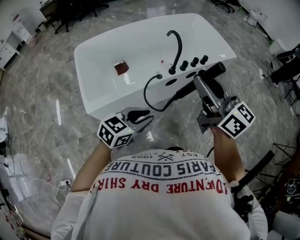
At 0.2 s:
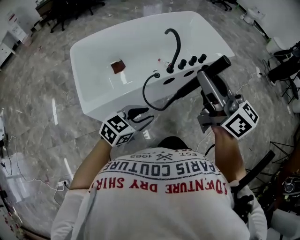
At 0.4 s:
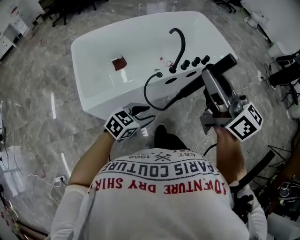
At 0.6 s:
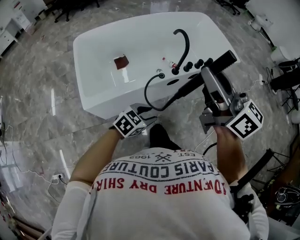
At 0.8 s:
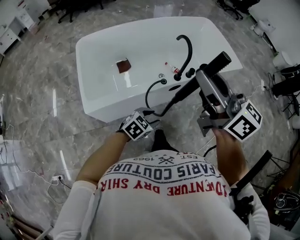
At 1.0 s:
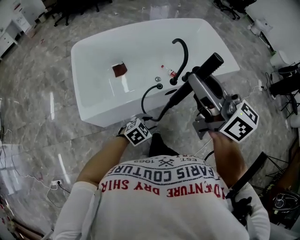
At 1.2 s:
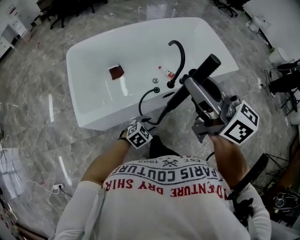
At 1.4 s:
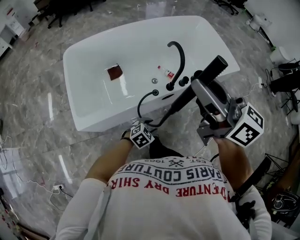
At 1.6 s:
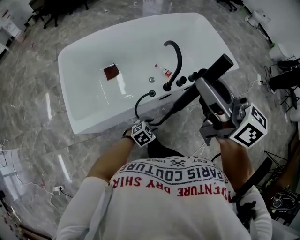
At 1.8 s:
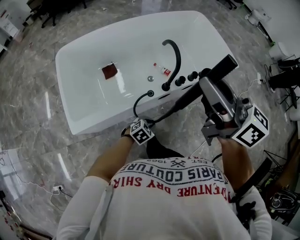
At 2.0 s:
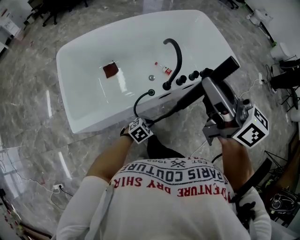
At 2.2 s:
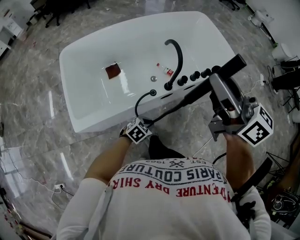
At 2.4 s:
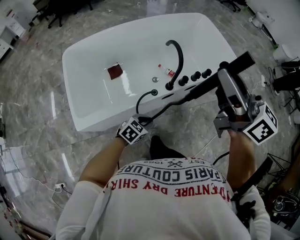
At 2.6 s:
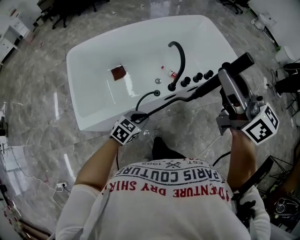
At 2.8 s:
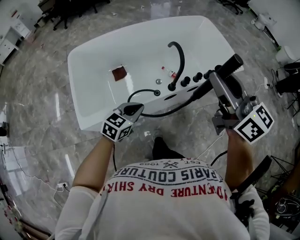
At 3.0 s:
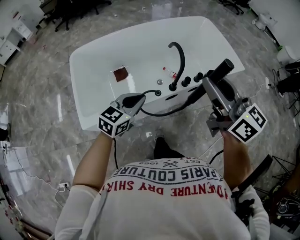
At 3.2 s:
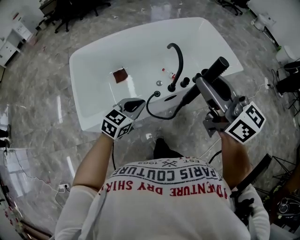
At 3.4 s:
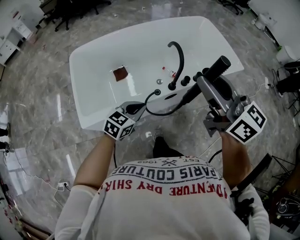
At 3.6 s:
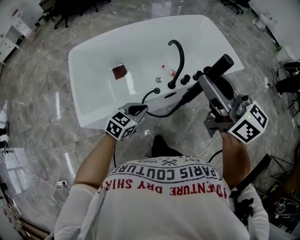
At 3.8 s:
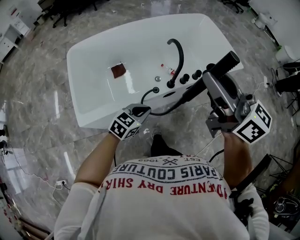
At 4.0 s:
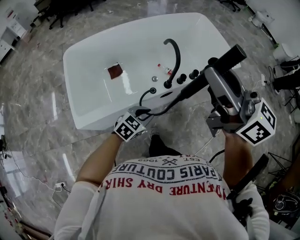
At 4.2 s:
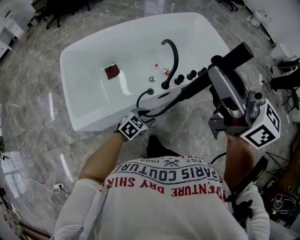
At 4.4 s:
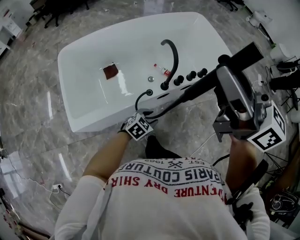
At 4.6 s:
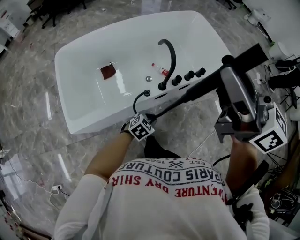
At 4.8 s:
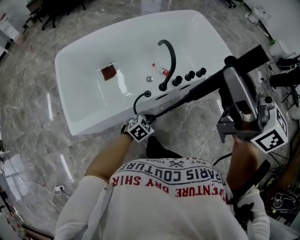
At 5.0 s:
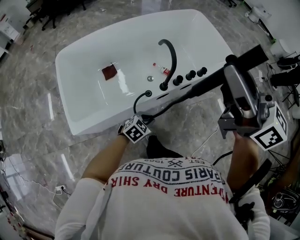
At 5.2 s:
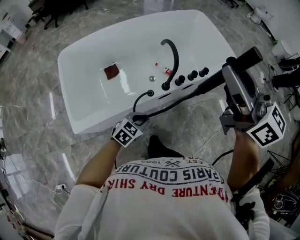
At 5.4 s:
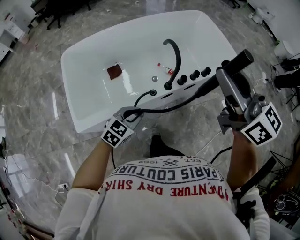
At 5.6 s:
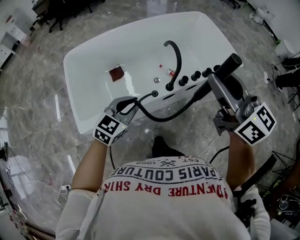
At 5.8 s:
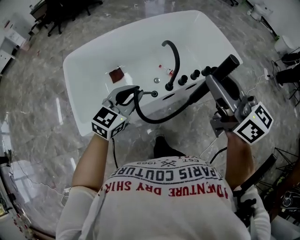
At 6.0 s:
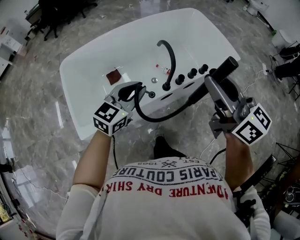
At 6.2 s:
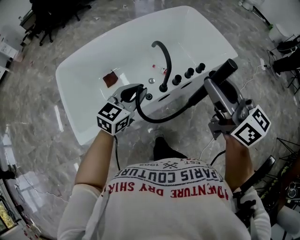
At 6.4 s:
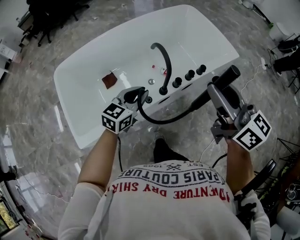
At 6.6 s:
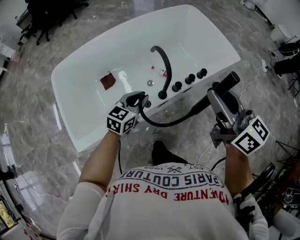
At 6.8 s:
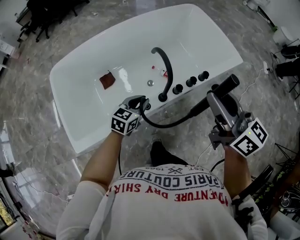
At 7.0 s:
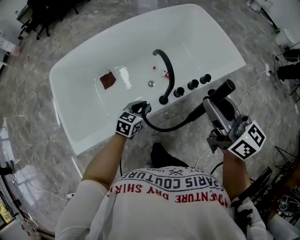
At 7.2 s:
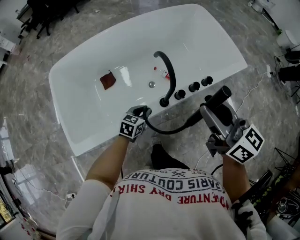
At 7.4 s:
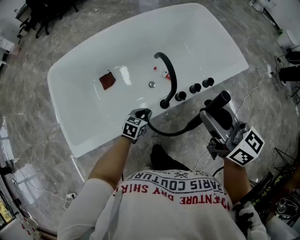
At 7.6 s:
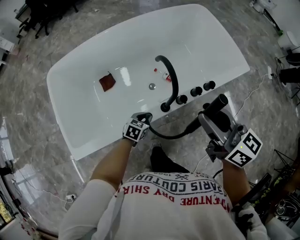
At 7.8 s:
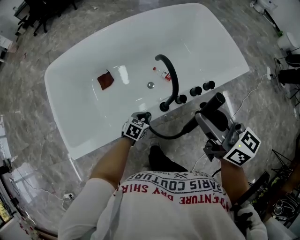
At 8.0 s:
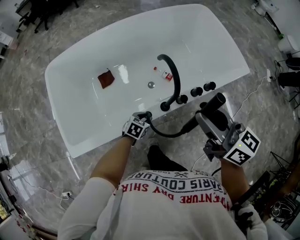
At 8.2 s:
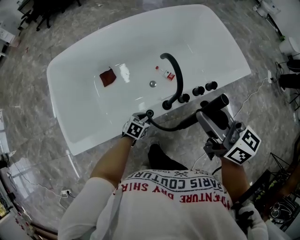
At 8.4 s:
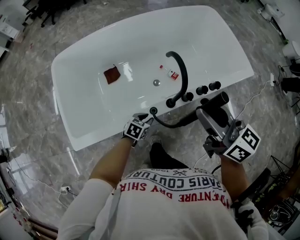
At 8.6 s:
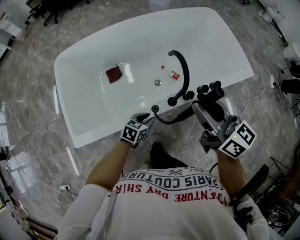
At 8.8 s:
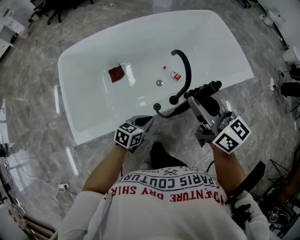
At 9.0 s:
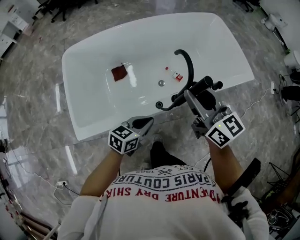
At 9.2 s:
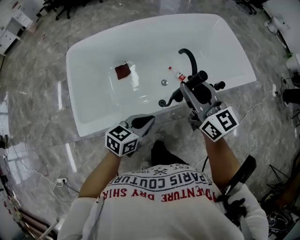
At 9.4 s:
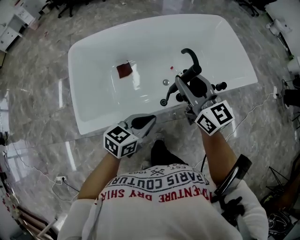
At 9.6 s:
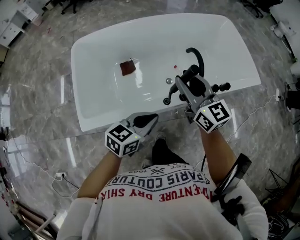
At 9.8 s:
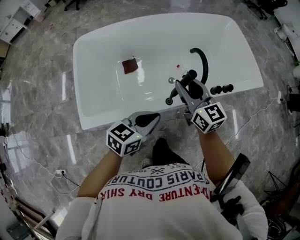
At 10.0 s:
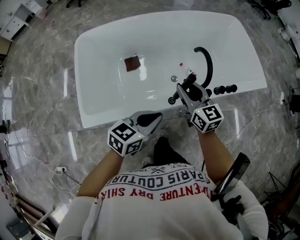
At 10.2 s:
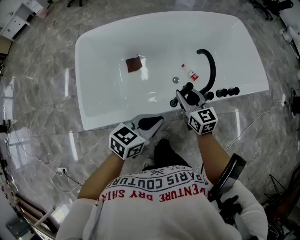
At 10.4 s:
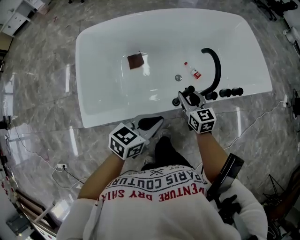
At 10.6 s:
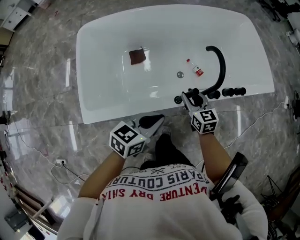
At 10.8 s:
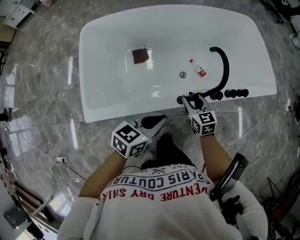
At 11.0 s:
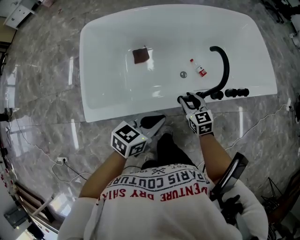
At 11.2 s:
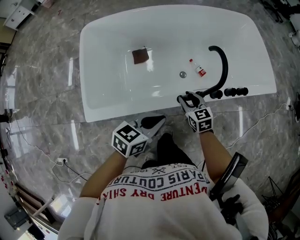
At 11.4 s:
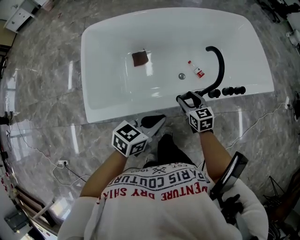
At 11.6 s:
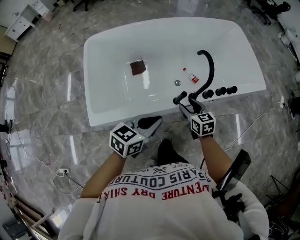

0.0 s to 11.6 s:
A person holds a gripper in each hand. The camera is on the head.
0.0 to 1.4 s: The left gripper is displaced downward and forward by roughly 25 cm, changes its angle by approximately 30 degrees, and opens up, while the right gripper moves forward and to the left, about 15 cm.
1.4 to 2.8 s: The right gripper is displaced to the right by some 5 cm. The left gripper goes some 20 cm upward and to the left, turns by about 30 degrees, and closes its fingers.
2.8 to 4.4 s: The right gripper shifts roughly 10 cm upward. Meanwhile the left gripper travels downward and to the right by about 20 cm, rotates roughly 20 degrees, and opens up.
4.4 to 5.8 s: The right gripper is displaced downward by some 10 cm. Meanwhile the left gripper moves upward and to the left, roughly 25 cm, rotates about 30 degrees, and closes up.
5.8 to 7.2 s: The left gripper goes some 30 cm downward, and rotates approximately 30 degrees. Meanwhile the right gripper travels downward and forward by roughly 15 cm.
7.2 to 8.8 s: The left gripper shifts roughly 10 cm backward and upward, while the right gripper is displaced to the left by about 5 cm.
8.8 to 10.2 s: The right gripper heads downward and to the left, covering roughly 20 cm, while the left gripper goes approximately 10 cm upward.
10.2 to 11.6 s: The right gripper goes approximately 5 cm backward, and opens its fingers.

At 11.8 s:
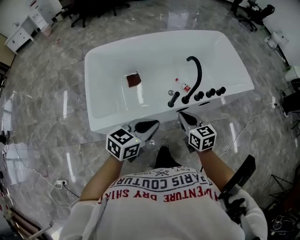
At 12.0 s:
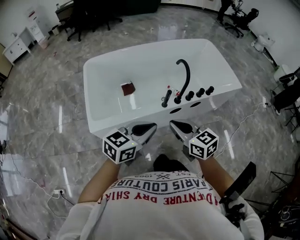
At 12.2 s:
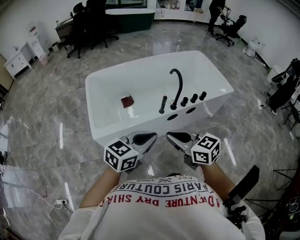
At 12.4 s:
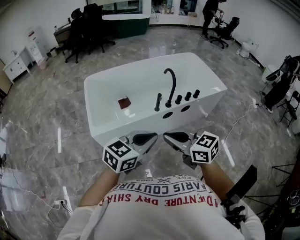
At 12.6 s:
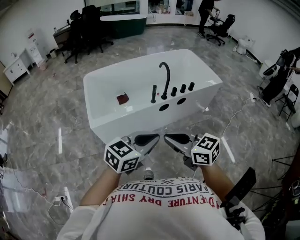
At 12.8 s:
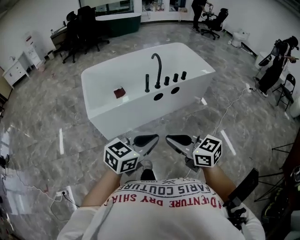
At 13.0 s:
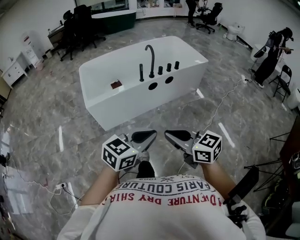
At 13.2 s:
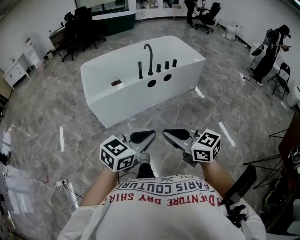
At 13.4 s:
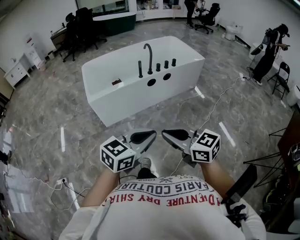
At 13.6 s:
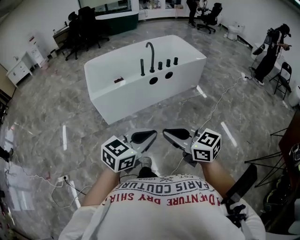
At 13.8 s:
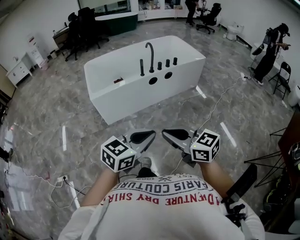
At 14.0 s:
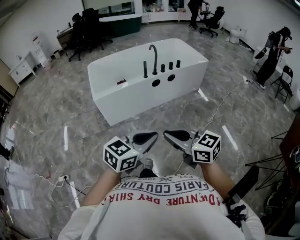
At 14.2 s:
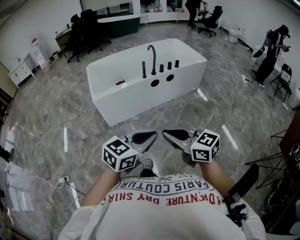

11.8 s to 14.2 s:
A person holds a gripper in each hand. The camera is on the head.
11.8 to 13.0 s: Both grippers are carried backward, approximately 50 cm.
13.0 to 14.2 s: Both grippers travel together backward, approximately 10 cm.

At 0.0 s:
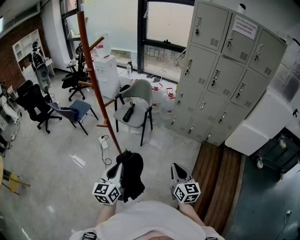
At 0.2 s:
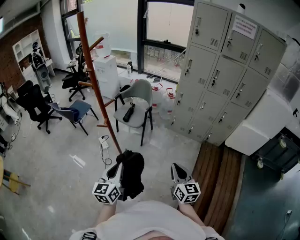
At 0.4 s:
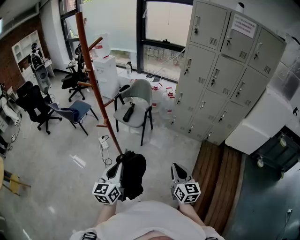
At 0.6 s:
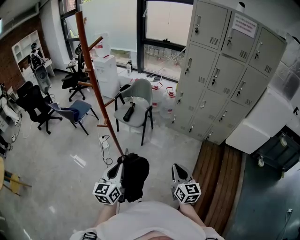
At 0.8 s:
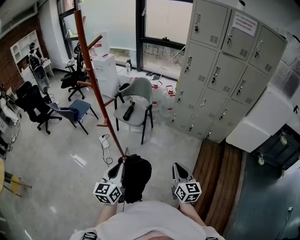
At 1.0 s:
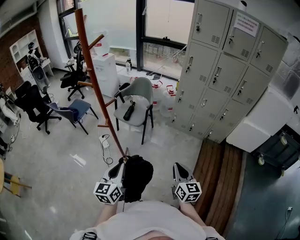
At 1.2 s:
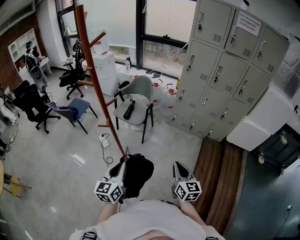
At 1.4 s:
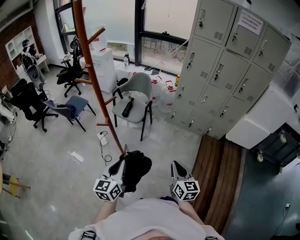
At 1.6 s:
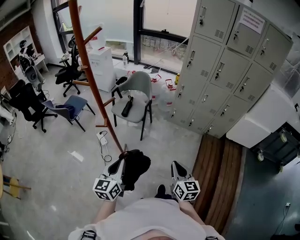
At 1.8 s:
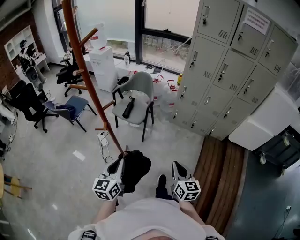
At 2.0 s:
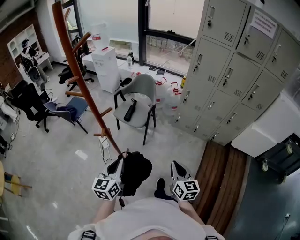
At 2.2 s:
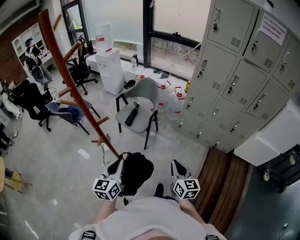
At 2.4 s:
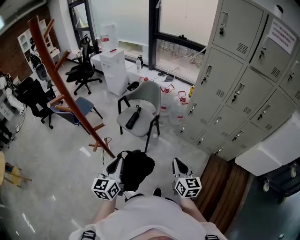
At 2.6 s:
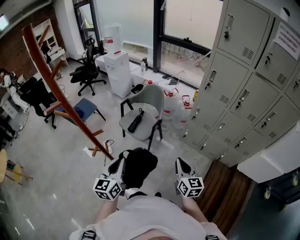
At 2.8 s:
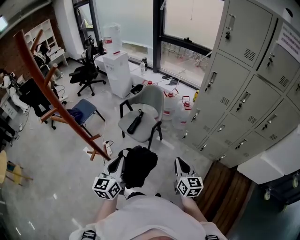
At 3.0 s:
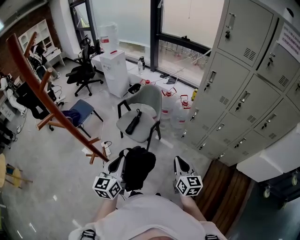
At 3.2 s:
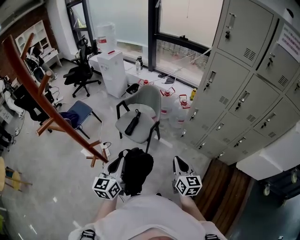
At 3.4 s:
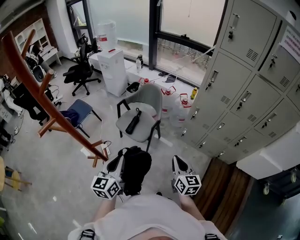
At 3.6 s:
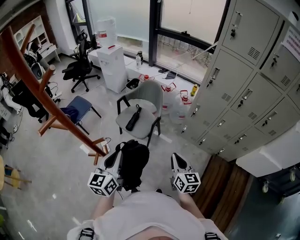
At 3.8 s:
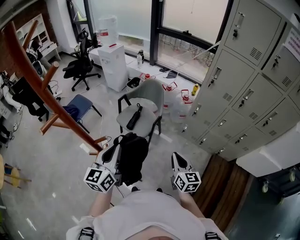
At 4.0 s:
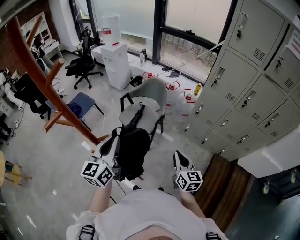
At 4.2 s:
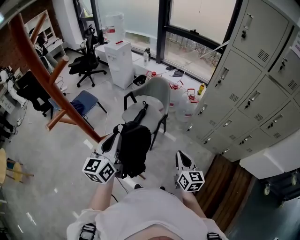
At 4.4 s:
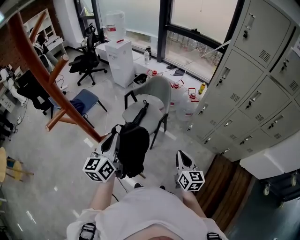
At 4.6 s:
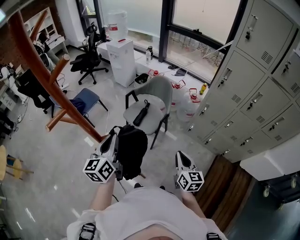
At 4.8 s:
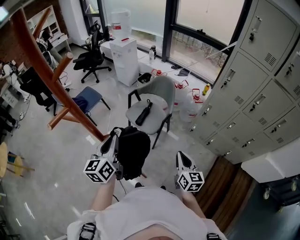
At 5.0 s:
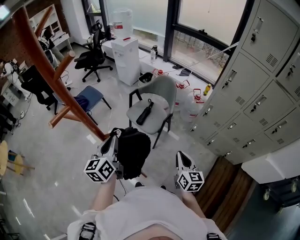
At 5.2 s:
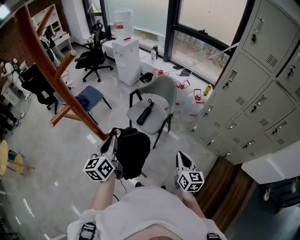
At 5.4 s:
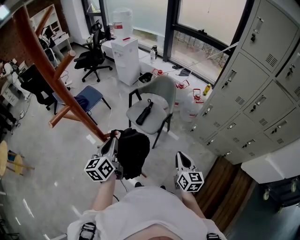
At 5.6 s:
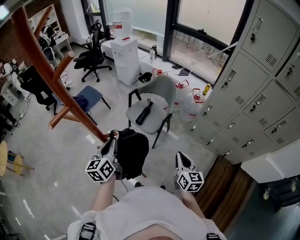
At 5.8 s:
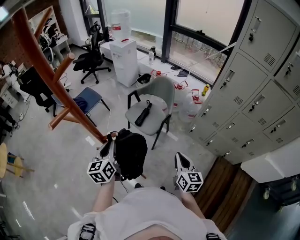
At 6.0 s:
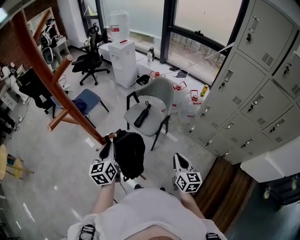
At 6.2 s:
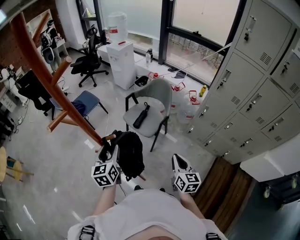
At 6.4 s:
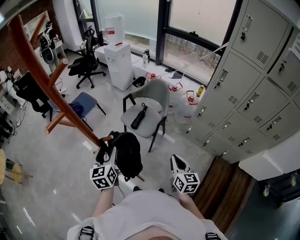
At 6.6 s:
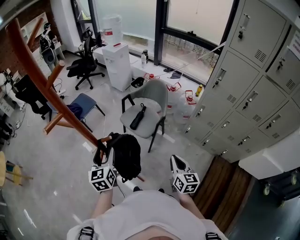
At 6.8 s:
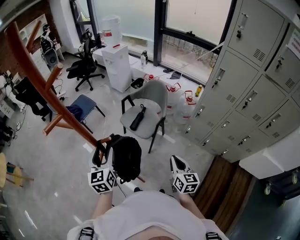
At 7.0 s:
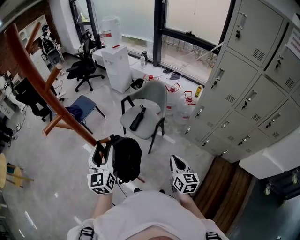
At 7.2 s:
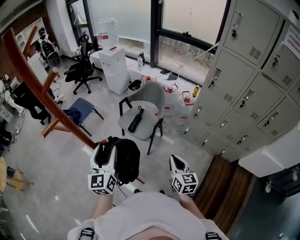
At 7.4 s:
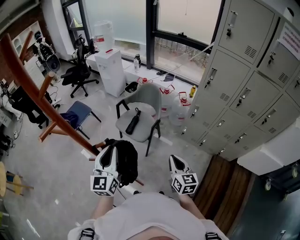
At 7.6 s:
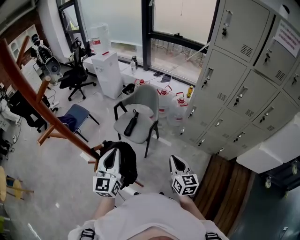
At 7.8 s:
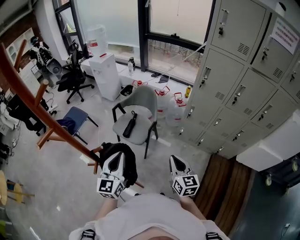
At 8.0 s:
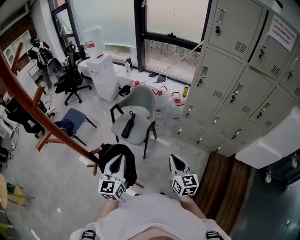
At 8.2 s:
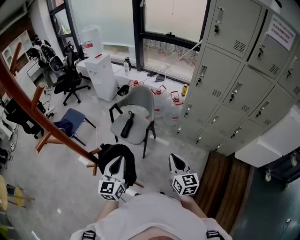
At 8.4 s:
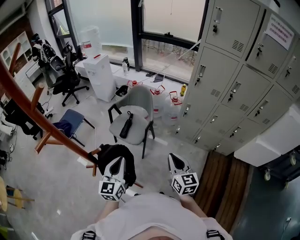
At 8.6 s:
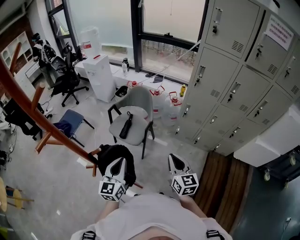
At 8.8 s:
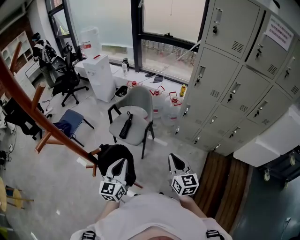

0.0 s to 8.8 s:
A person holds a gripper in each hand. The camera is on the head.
0.0 to 1.4 s: The left gripper changes place by approximately 5 cm, while the right gripper ends up some 5 cm from where it was.
1.4 to 3.0 s: The grippers both shift forward by about 30 cm.
3.0 to 4.4 s: The right gripper goes some 5 cm to the left, while the left gripper travels to the left, forward and upward by approximately 15 cm.
4.4 to 5.8 s: The left gripper is displaced downward and to the left by approximately 10 cm.
5.8 to 7.4 s: The left gripper moves to the right and upward, roughly 10 cm, changes its angle by roughly 30 degrees, and opens and closes again.
7.4 to 8.8 s: The left gripper travels downward and to the right by about 10 cm.
